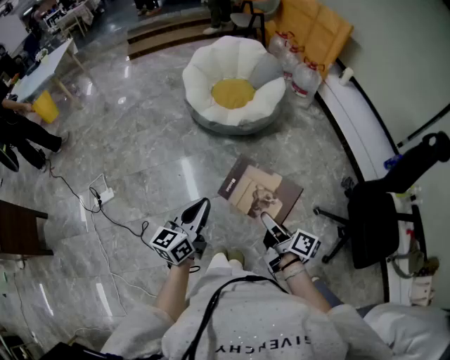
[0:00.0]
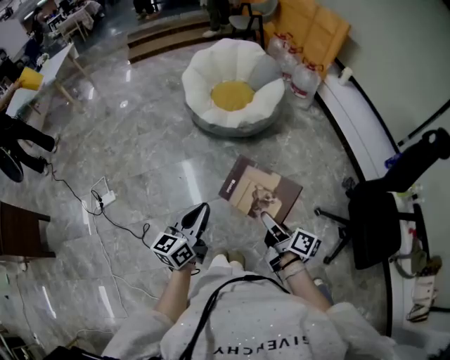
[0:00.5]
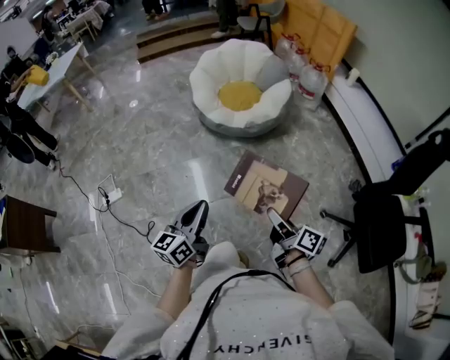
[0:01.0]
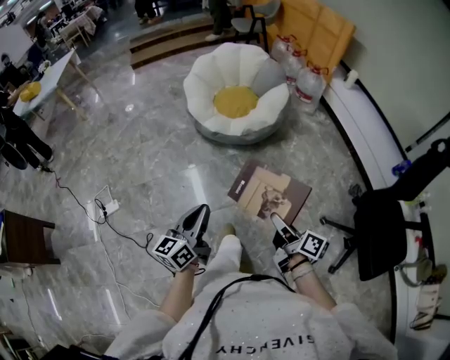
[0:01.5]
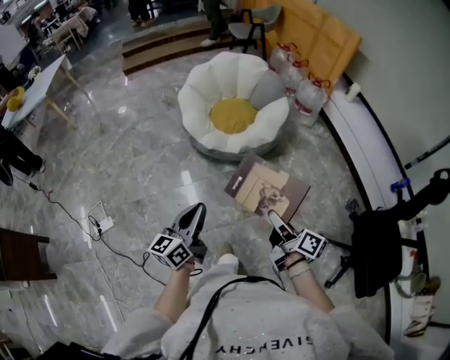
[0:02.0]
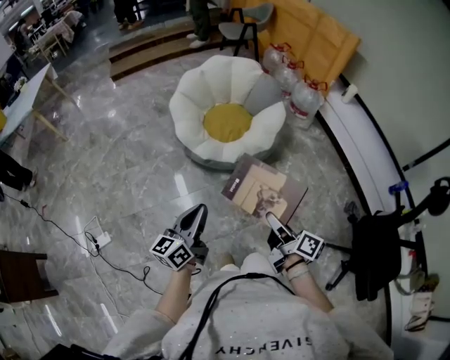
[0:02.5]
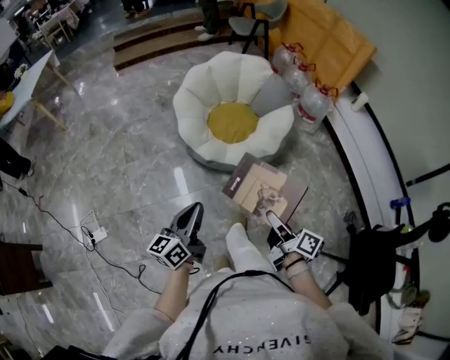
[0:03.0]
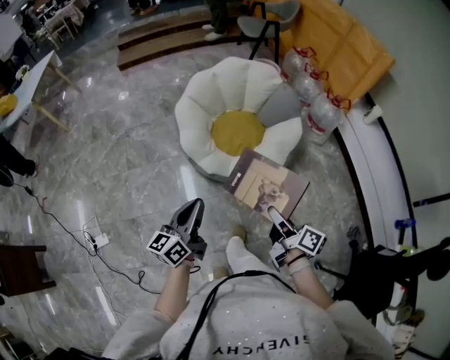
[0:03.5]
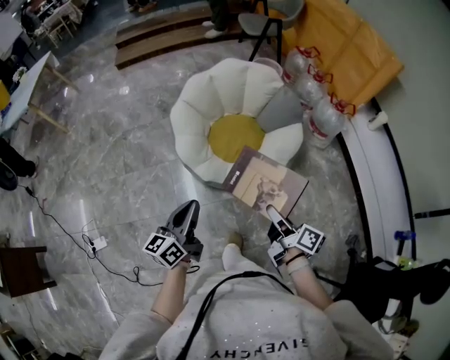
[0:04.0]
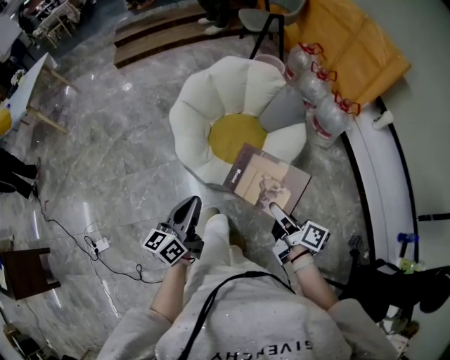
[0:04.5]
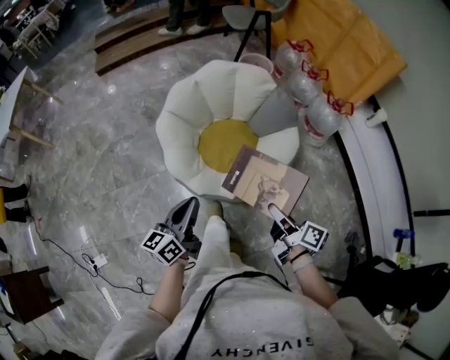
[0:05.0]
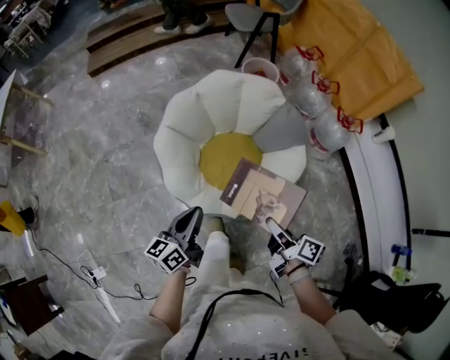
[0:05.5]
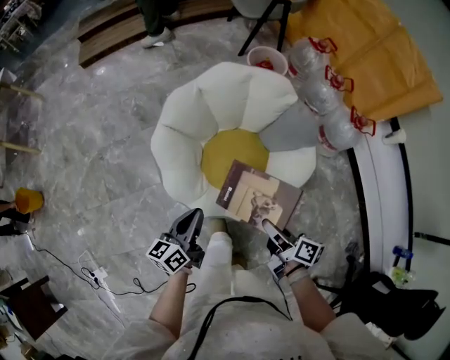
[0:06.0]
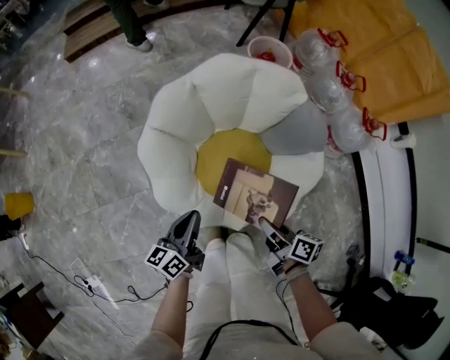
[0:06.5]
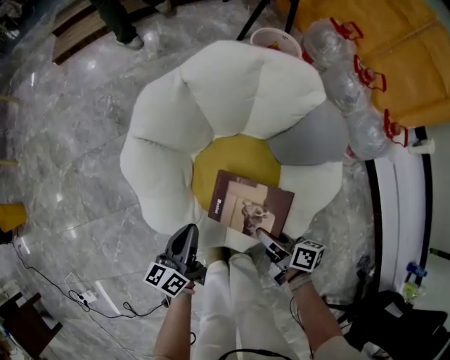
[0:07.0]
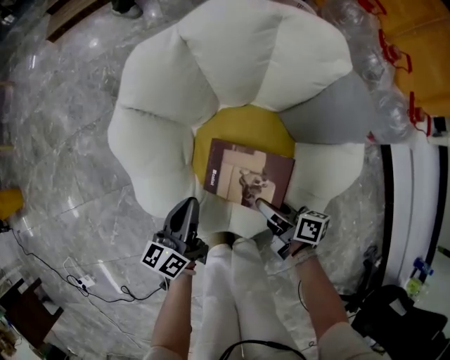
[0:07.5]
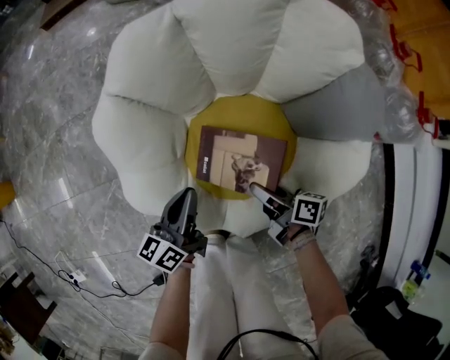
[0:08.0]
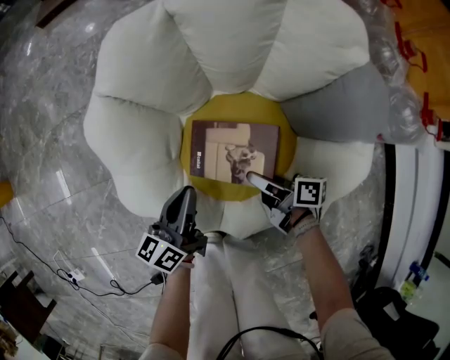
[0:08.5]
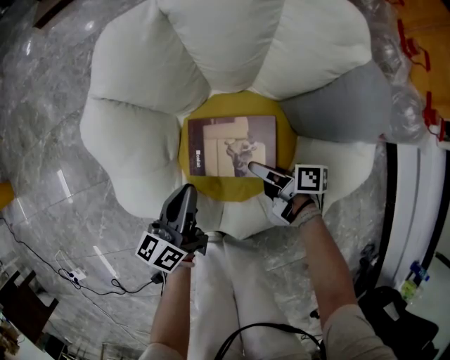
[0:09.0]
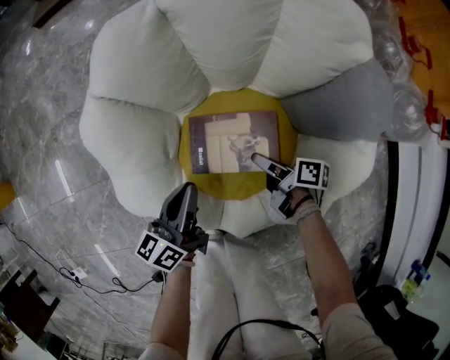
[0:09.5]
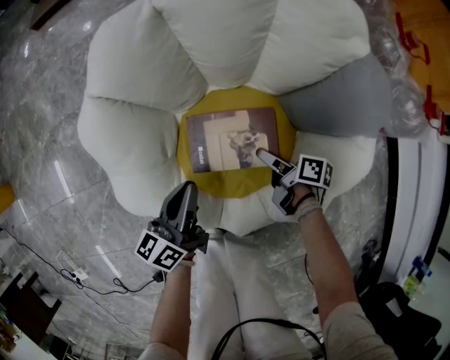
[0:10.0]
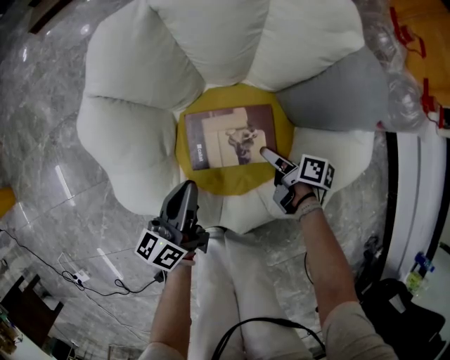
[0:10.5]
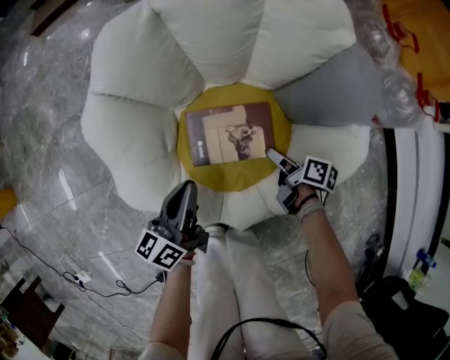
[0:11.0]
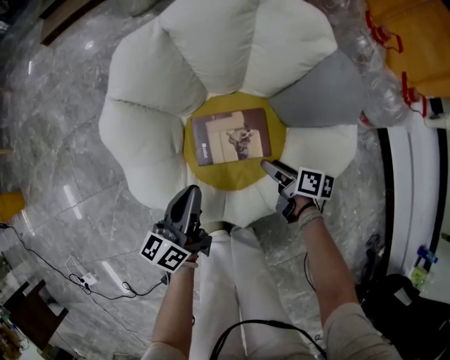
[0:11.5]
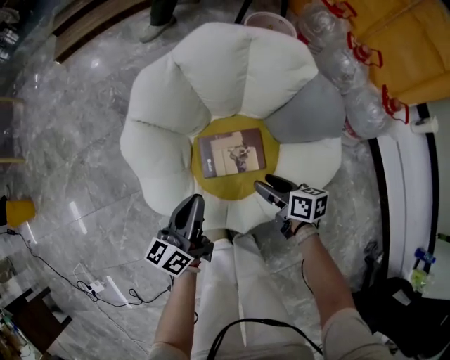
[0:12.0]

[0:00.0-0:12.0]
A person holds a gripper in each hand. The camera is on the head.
0:00.0 to 0:02.0: Both grippers travel together forward, some 20 cm.
0:02.0 to 0:04.0: The two grippers go approximately 35 cm forward.
0:04.0 to 0:06.0: The two grippers go some 30 cm forward and downward.
0:06.0 to 0:08.0: The right gripper heads downward and forward, covering about 35 cm; the left gripper goes approximately 25 cm downward.
0:08.0 to 0:10.0: The right gripper shifts some 10 cm downward and to the right, and opens.
0:10.0 to 0:12.0: The grippers both shift upward by roughly 15 cm. The right gripper turns by some 30 degrees.

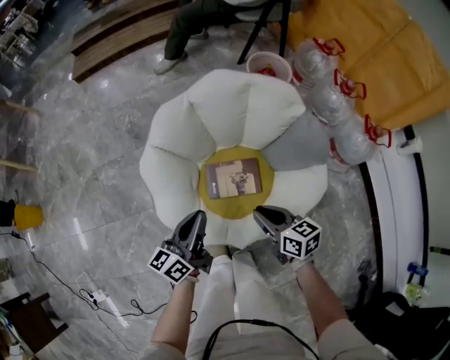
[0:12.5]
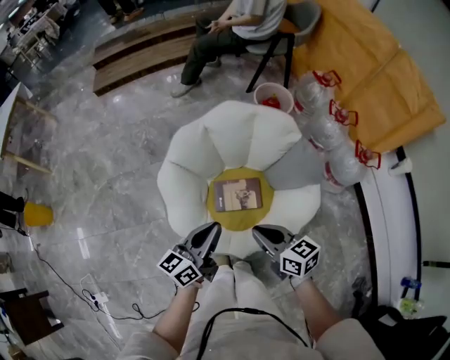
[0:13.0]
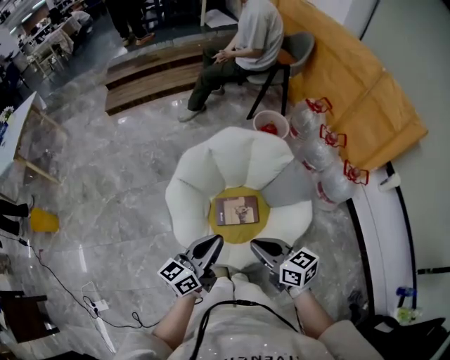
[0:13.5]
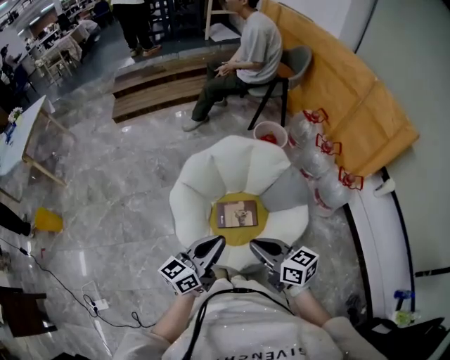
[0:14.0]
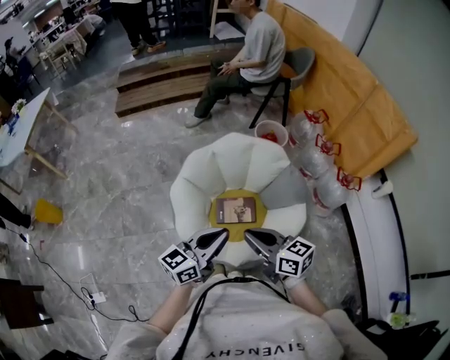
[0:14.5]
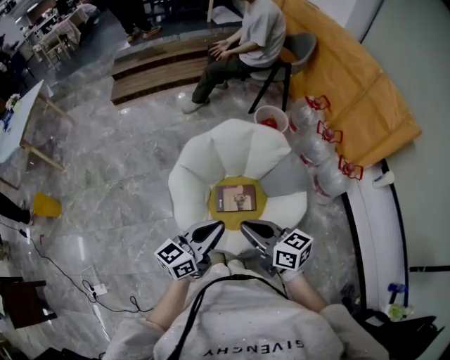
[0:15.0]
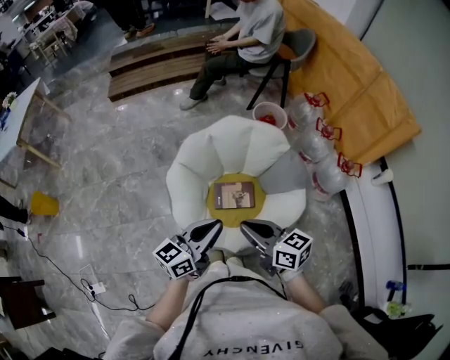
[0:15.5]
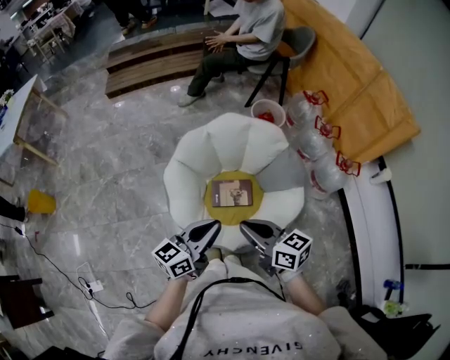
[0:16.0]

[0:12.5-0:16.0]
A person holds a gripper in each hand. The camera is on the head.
0:12.5 to 0:14.5: The two grippers go about 25 cm upward. The left gripper rotates about 30 degrees. Meanwhile the right gripper turns by some 20 degrees.
0:14.5 to 0:16.0: The grippers make only small movements.

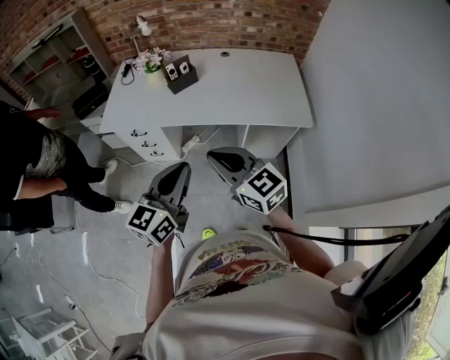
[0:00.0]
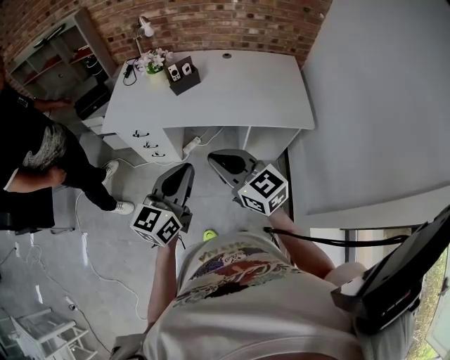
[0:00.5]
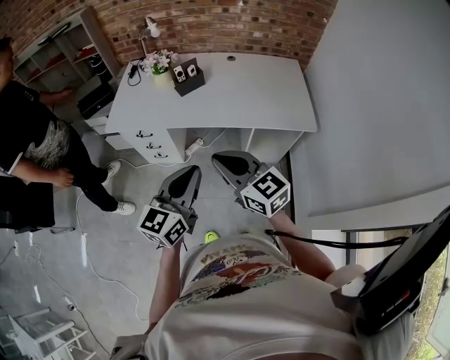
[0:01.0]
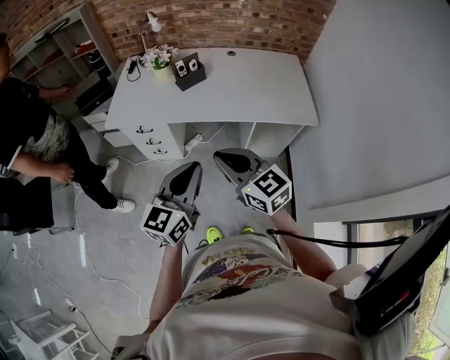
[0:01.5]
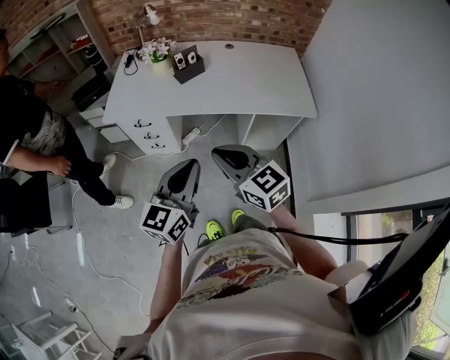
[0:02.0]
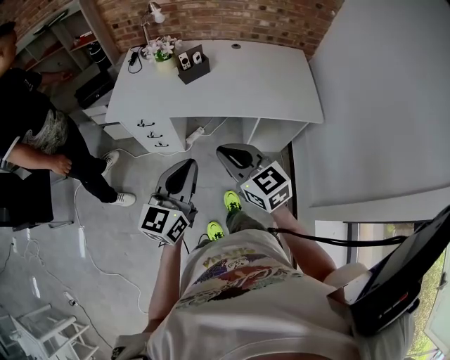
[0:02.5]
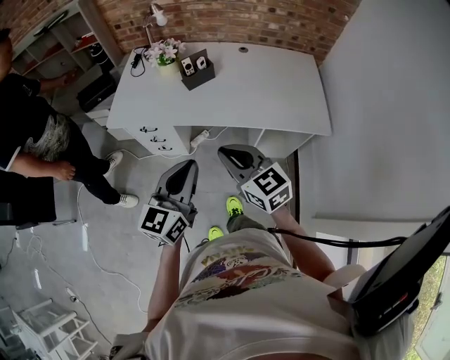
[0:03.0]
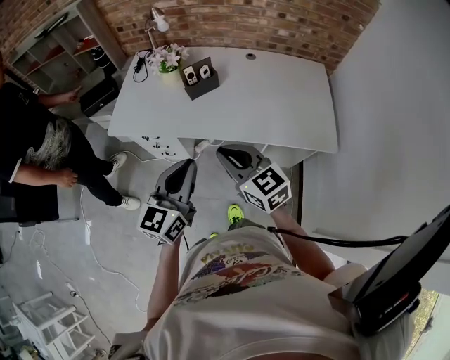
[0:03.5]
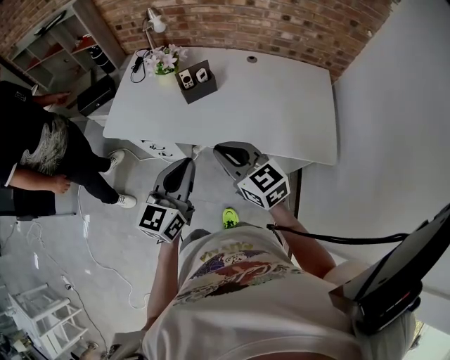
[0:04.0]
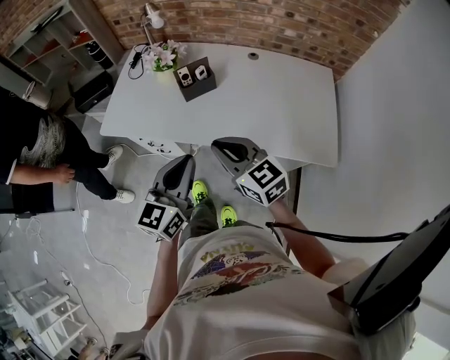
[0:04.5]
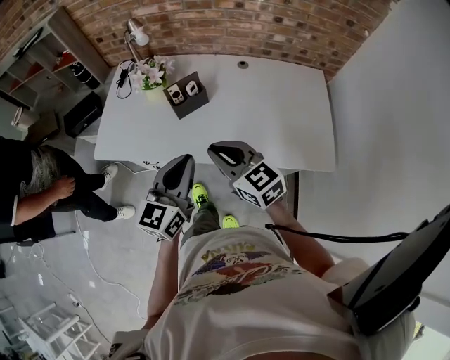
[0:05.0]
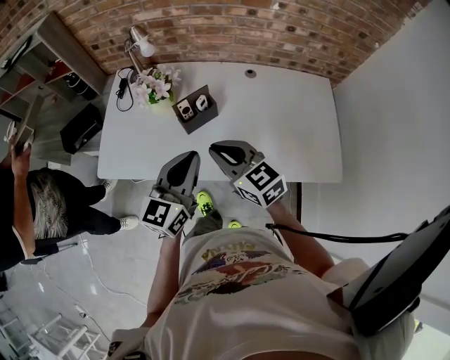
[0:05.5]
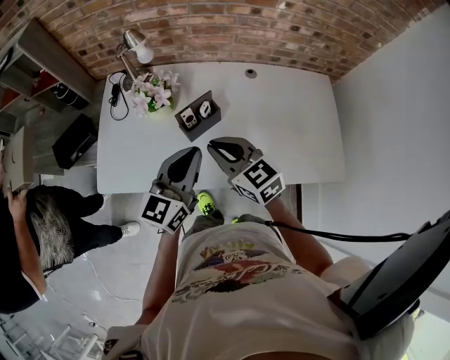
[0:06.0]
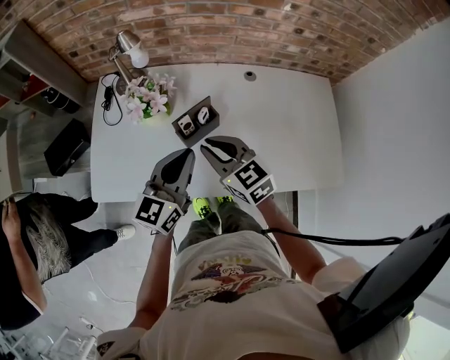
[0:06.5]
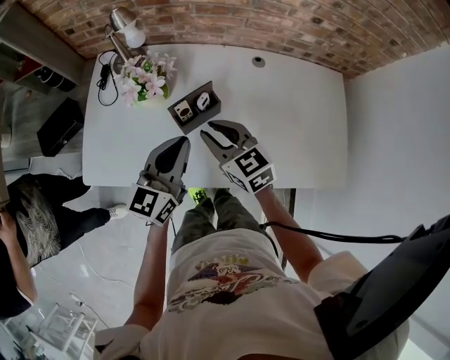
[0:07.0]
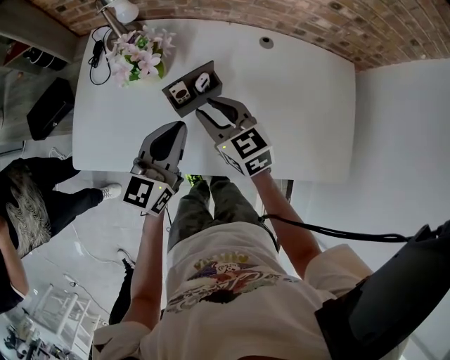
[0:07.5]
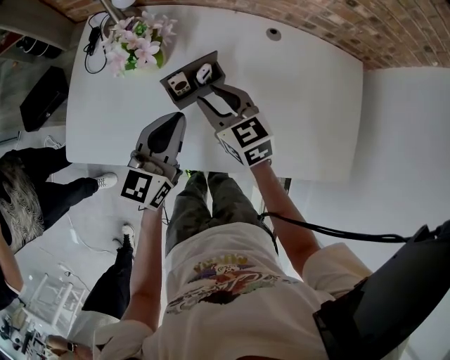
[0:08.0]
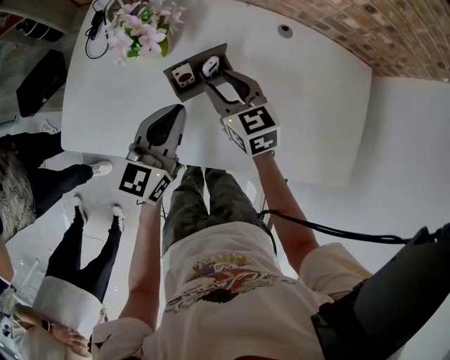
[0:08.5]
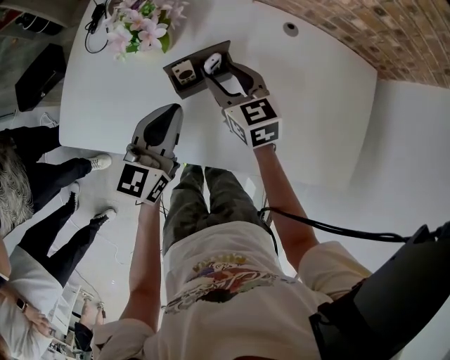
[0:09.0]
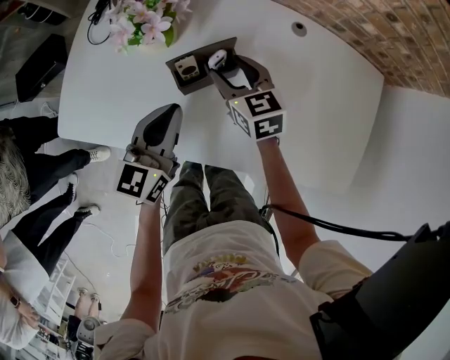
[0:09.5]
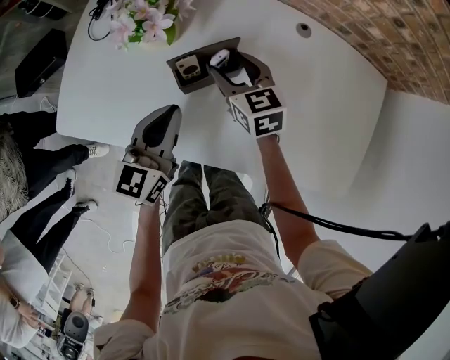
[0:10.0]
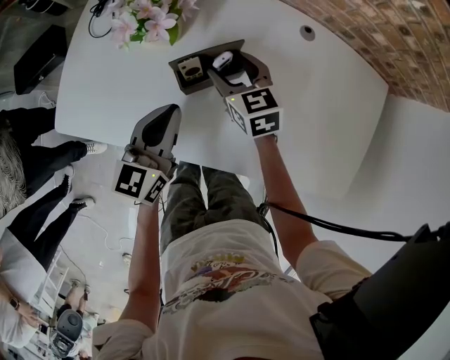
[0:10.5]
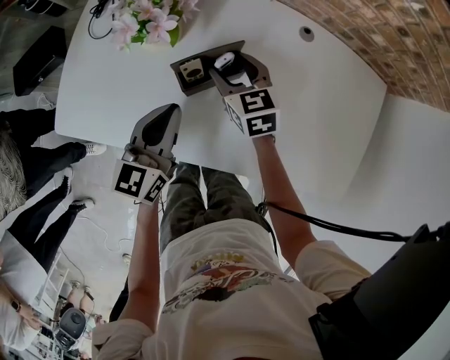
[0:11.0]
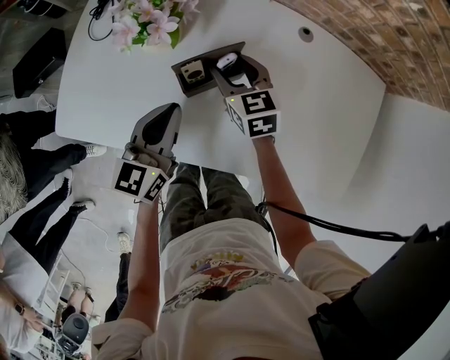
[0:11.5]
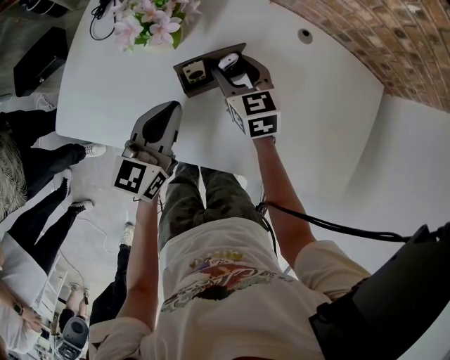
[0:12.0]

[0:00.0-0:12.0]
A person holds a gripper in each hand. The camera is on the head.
0:00.0 to 0:02.0: The two grippers go about 5 cm to the left.
0:02.0 to 0:04.0: The left gripper shifts about 20 cm forward; the right gripper travels forward and to the right by about 25 cm.
0:04.0 to 0:06.0: Both grippers travel together forward, roughly 25 cm.
0:06.0 to 0:08.0: Both grippers move downward and forward, about 15 cm. The right gripper opens up.
0:08.0 to 0:10.0: The right gripper goes some 10 cm forward and downward, and opens. Meanwhile the left gripper is displaced downward by about 5 cm.
0:10.0 to 0:12.0: The grippers move only a little.
